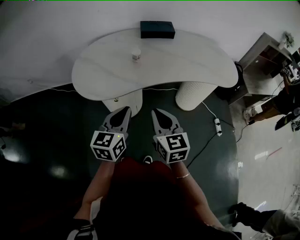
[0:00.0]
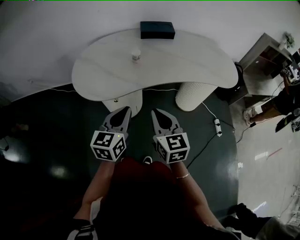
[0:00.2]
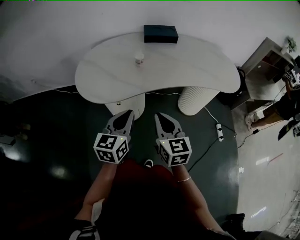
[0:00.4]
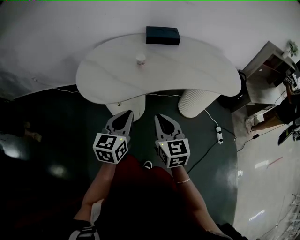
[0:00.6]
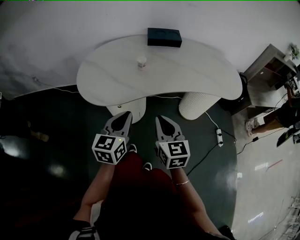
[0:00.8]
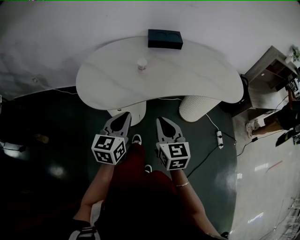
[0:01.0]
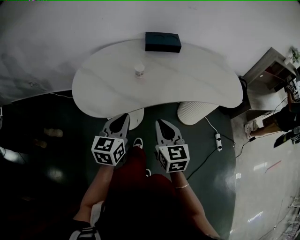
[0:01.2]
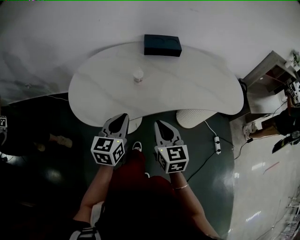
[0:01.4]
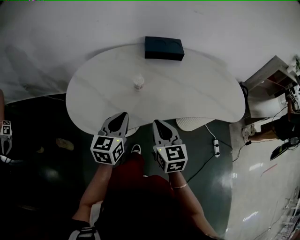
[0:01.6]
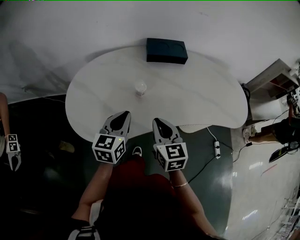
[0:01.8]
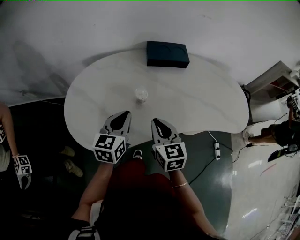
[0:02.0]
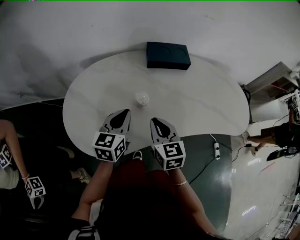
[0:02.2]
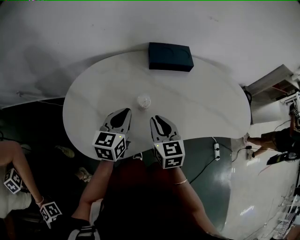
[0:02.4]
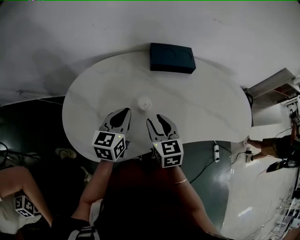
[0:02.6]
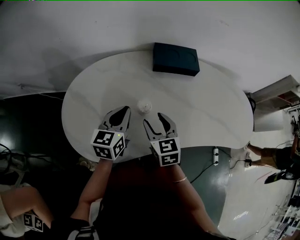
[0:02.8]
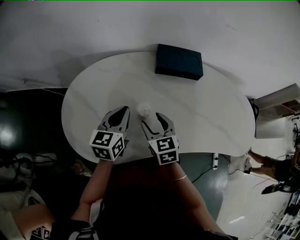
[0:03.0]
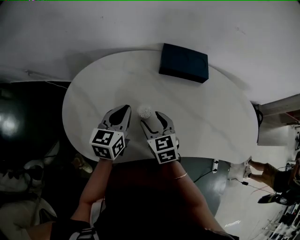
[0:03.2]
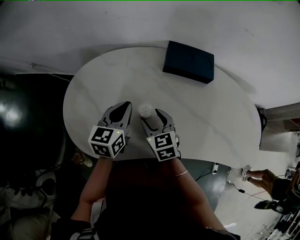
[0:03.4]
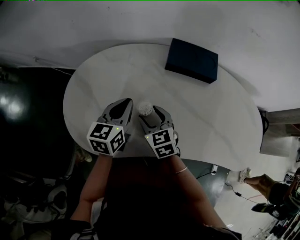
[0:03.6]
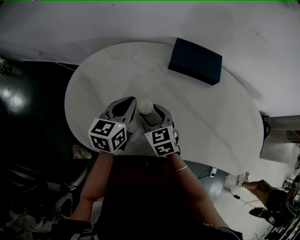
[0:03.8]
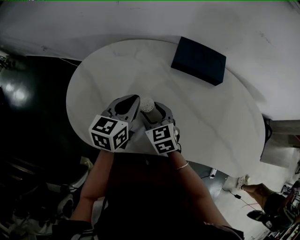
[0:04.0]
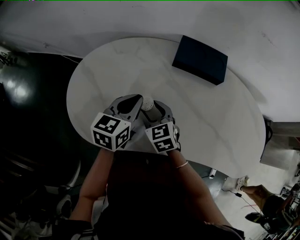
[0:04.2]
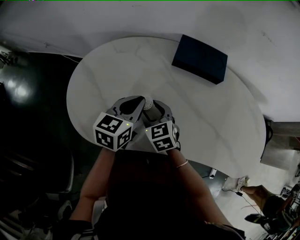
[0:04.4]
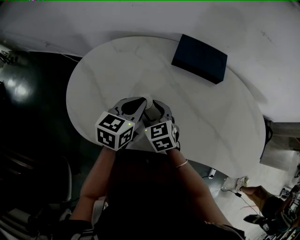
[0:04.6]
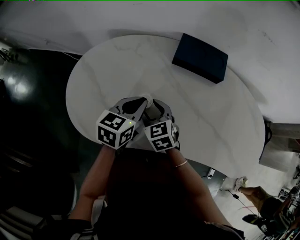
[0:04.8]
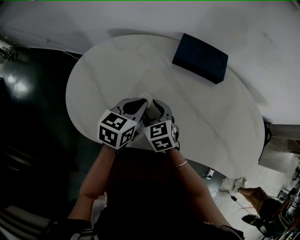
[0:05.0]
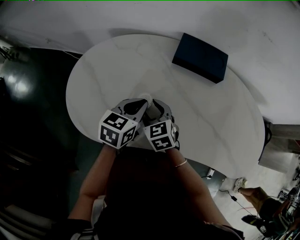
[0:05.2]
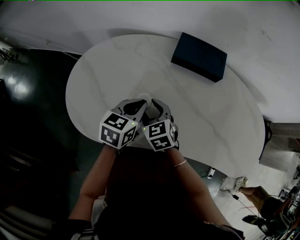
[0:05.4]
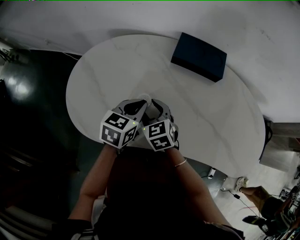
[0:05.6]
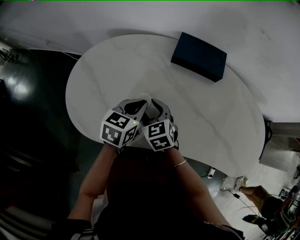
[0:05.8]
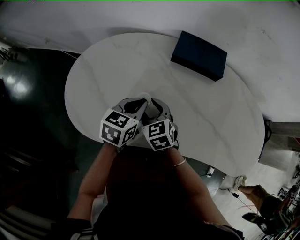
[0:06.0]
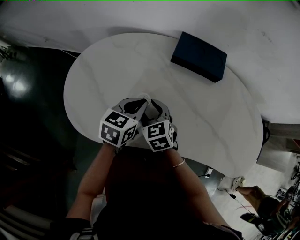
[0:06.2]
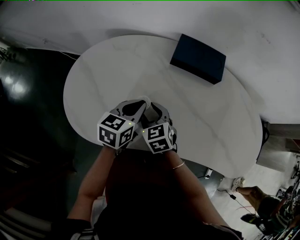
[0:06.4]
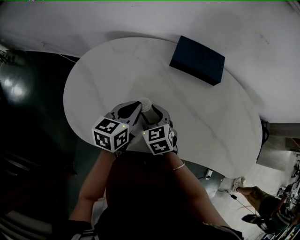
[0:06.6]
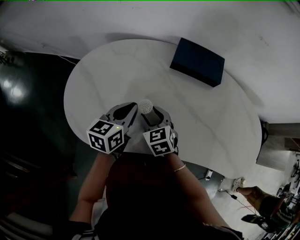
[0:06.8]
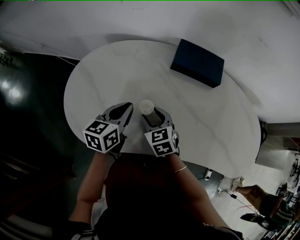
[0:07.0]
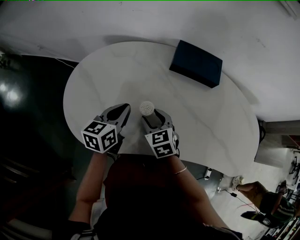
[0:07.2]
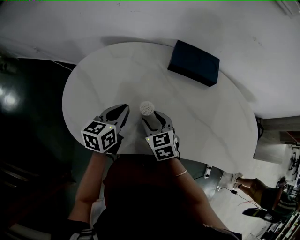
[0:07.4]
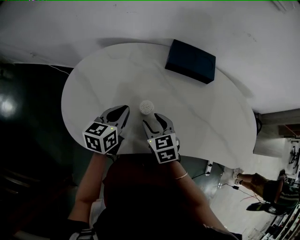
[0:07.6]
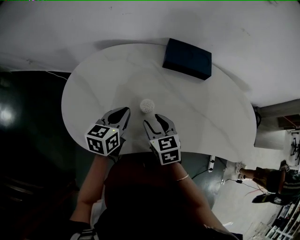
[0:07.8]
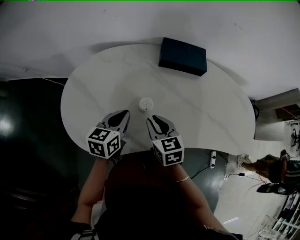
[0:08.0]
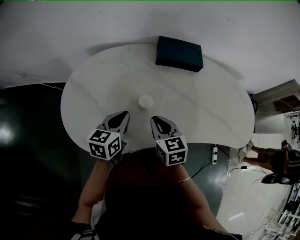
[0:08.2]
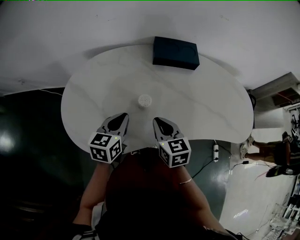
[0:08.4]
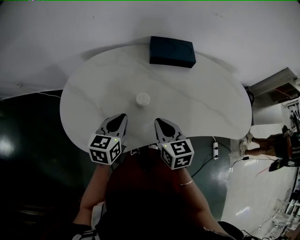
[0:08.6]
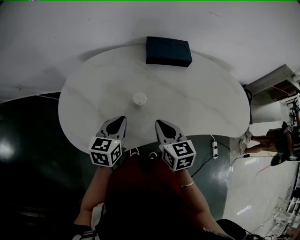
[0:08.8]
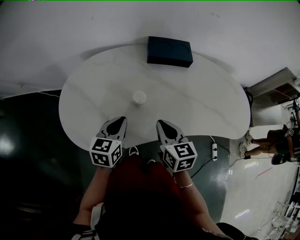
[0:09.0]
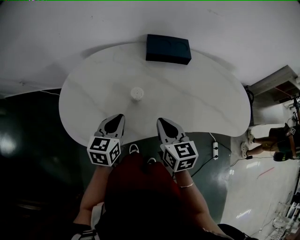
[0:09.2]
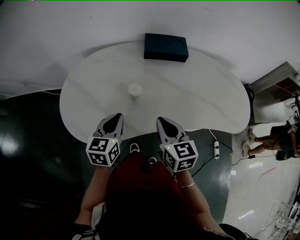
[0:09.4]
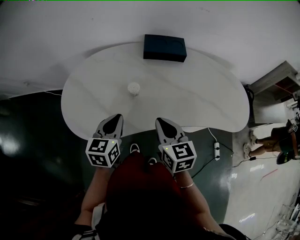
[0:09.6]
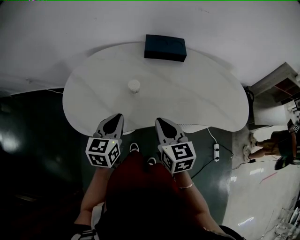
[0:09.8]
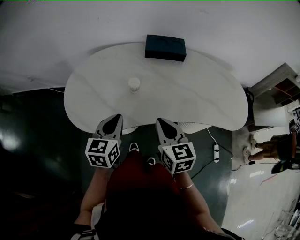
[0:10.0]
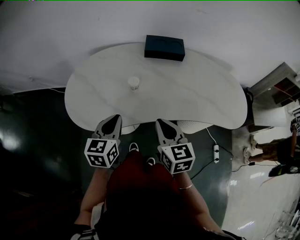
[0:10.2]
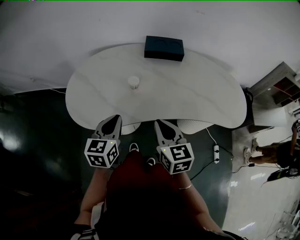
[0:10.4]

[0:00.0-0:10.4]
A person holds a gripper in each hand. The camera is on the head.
0.0 to 1.4 s: Both grippers travel together forward, approximately 10 cm.
1.4 to 3.0 s: The two grippers go roughly 25 cm forward. The right gripper rotates about 20 degrees, and opens its fingers.
3.0 to 4.4 s: The left gripper is displaced to the right by some 5 cm, while the right gripper rotates some 20 degrees.
4.4 to 6.0 s: The grippers move only a little.
6.0 to 7.4 s: The left gripper heads to the left, covering roughly 10 cm.
7.4 to 9.0 s: The left gripper moves backward, roughly 10 cm, while the right gripper heads backward, upward and to the right, covering approximately 15 cm, swivels some 30 degrees, and closes its fingers.
9.0 to 10.4 s: The right gripper is displaced backward by about 10 cm, while the left gripper shifts about 15 cm backward and upward.

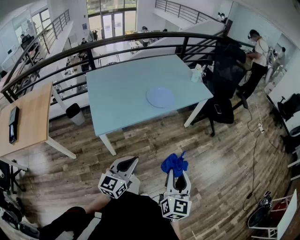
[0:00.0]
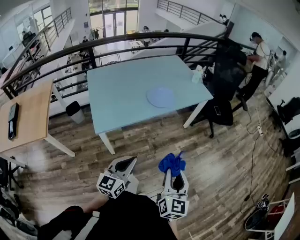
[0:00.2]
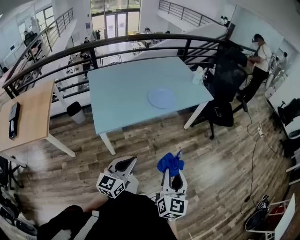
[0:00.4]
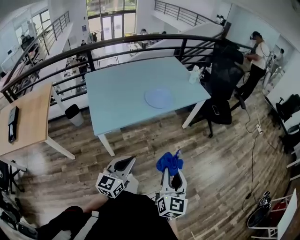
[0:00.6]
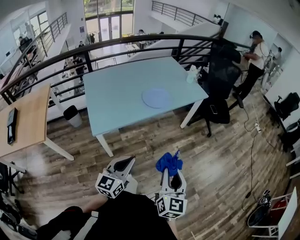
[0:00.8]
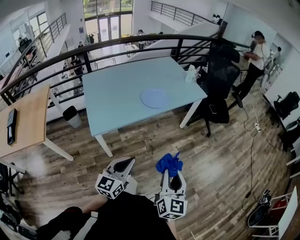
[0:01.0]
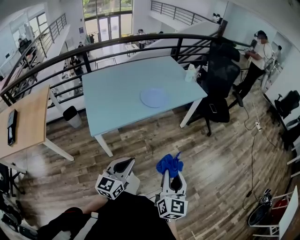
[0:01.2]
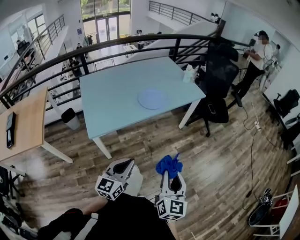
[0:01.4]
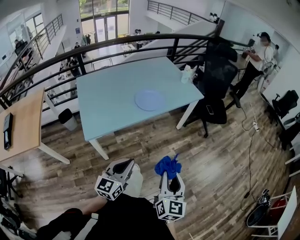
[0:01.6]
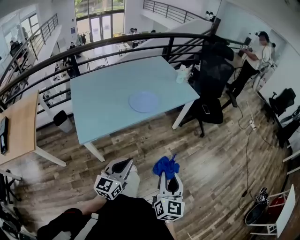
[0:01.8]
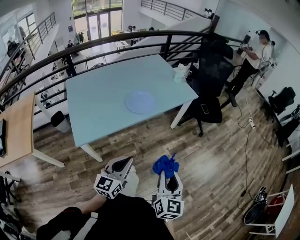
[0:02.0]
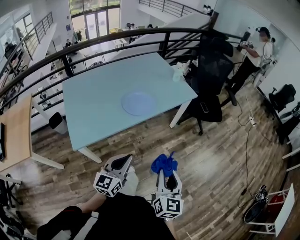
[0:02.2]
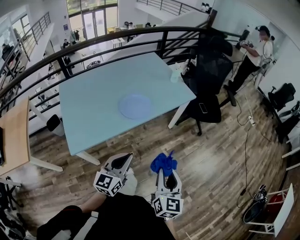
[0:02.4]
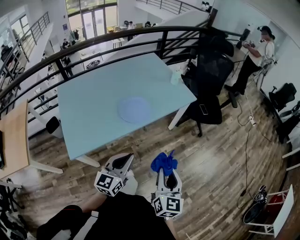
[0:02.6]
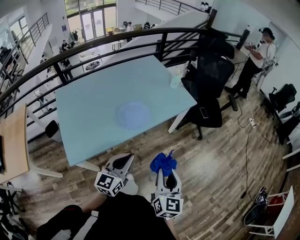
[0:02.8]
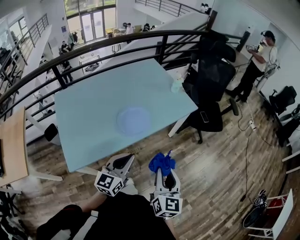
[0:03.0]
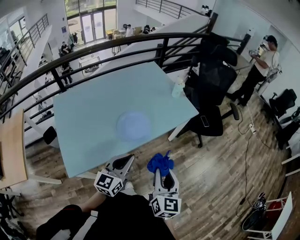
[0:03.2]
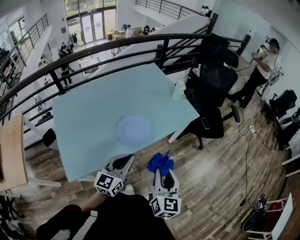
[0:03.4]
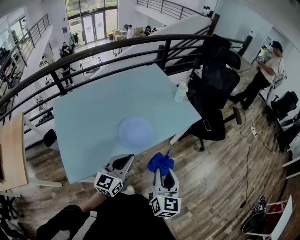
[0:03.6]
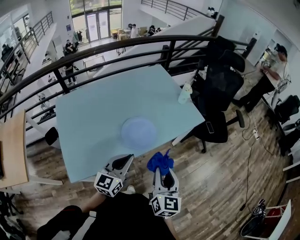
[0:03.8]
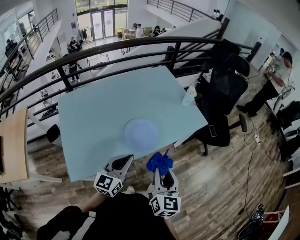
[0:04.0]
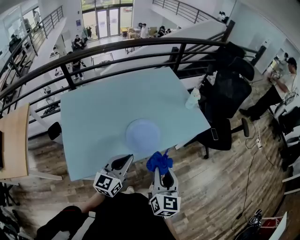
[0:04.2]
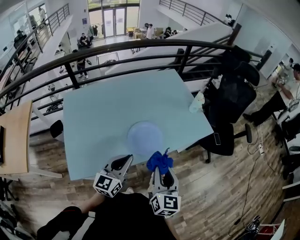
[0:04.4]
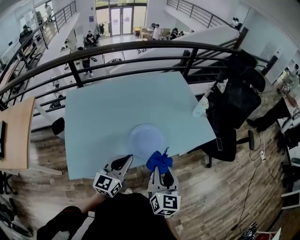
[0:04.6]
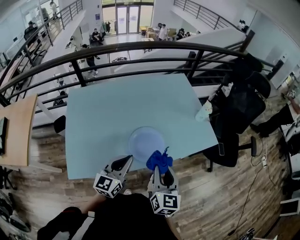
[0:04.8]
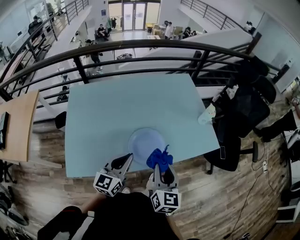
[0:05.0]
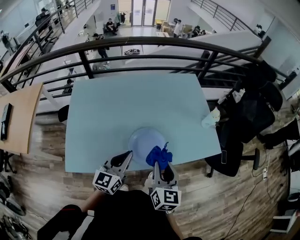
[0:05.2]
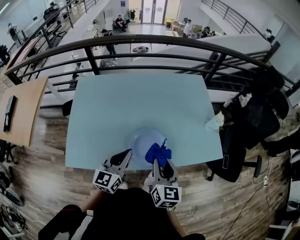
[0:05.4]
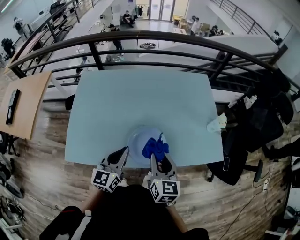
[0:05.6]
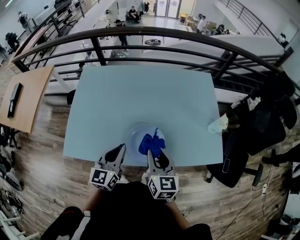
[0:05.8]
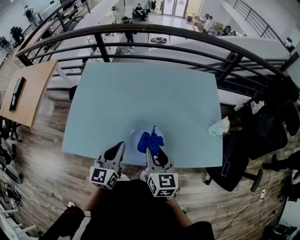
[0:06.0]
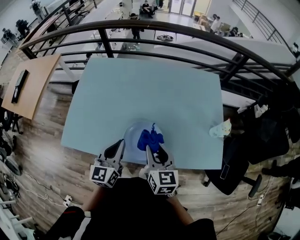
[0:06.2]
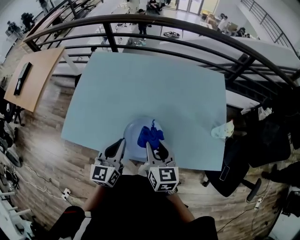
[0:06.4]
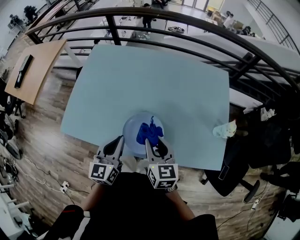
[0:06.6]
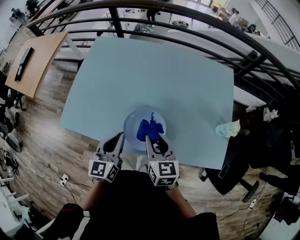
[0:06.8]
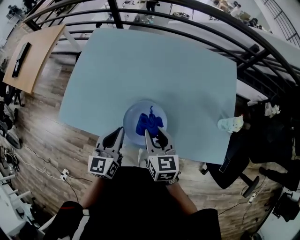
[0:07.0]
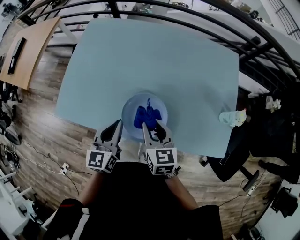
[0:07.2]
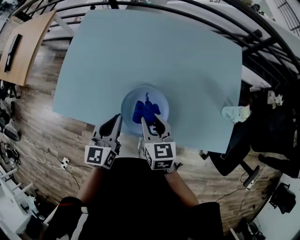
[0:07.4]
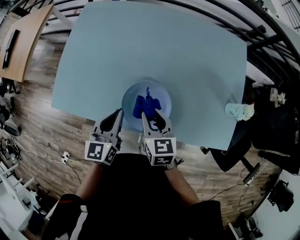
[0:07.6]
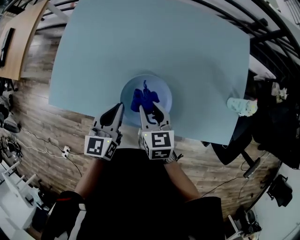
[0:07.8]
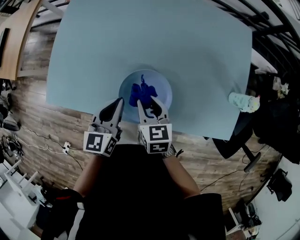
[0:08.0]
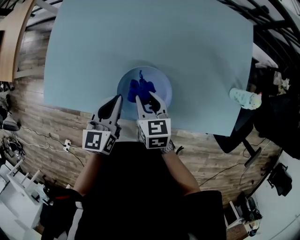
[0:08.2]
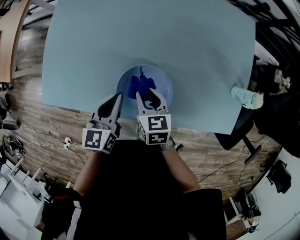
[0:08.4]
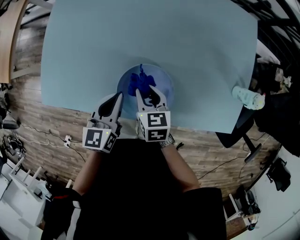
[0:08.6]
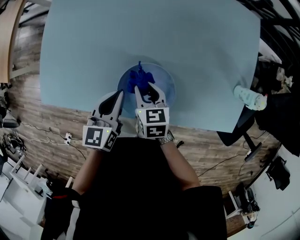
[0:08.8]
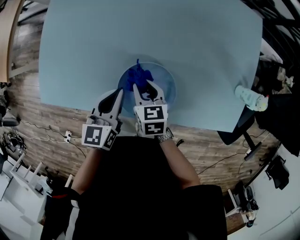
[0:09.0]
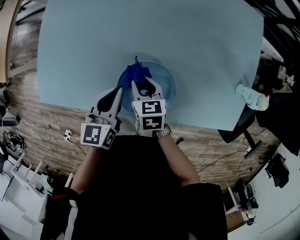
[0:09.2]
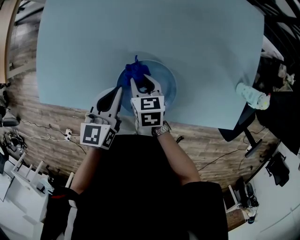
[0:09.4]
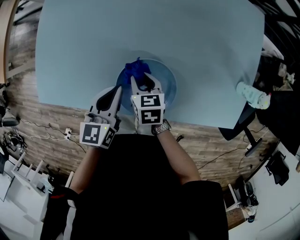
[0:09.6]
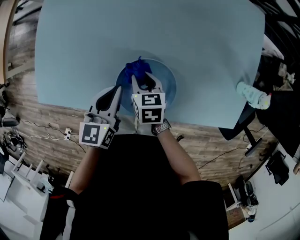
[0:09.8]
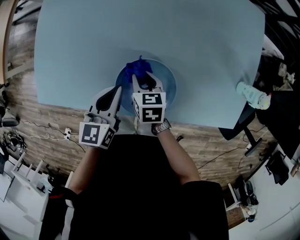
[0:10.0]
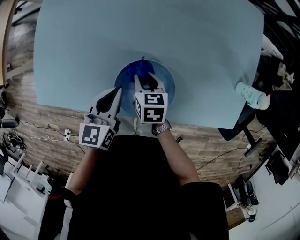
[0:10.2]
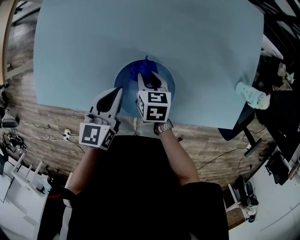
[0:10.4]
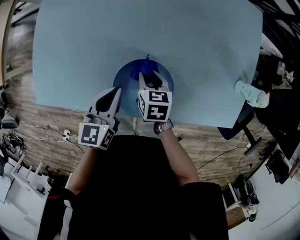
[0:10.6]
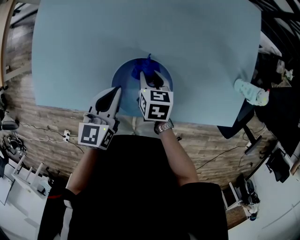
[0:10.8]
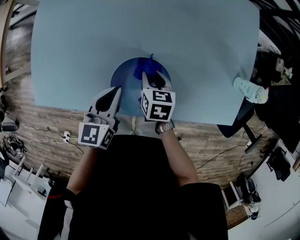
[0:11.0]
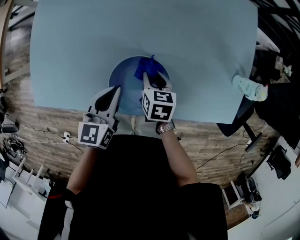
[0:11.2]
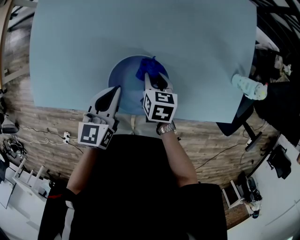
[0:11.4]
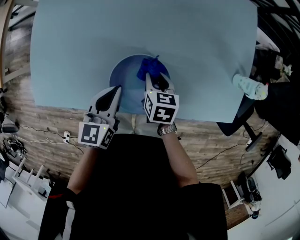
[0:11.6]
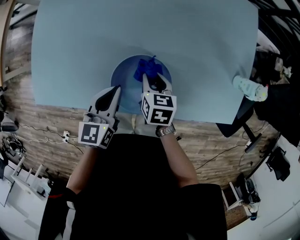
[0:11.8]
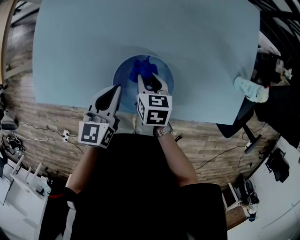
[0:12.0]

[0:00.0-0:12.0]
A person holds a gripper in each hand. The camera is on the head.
0.0 to 1.6 s: The grippers move only a little.
1.6 to 3.0 s: The two grippers go some 25 cm forward.
3.0 to 4.4 s: The grippers both shift forward and to the left by roughly 15 cm.
4.4 to 6.0 s: The left gripper ends up approximately 10 cm from where it was, and changes its angle by roughly 40 degrees; the right gripper changes place by some 20 cm, and swivels approximately 40 degrees.
6.0 to 7.6 s: The right gripper shifts approximately 15 cm downward and forward, and changes its angle by some 20 degrees; the left gripper goes about 10 cm downward.
7.6 to 9.0 s: Both grippers move downward and forward, about 10 cm.
9.0 to 10.4 s: The right gripper shifts by about 5 cm.
10.4 to 12.0 s: There are only small adjustments of the grippers.

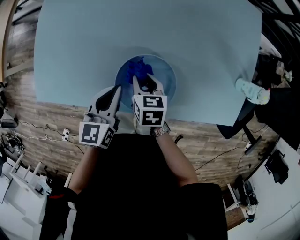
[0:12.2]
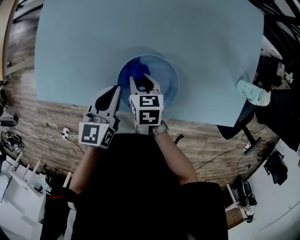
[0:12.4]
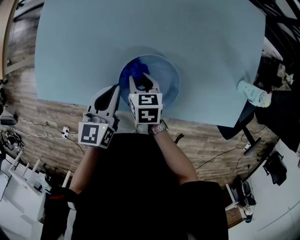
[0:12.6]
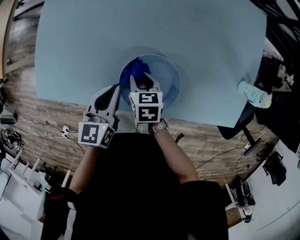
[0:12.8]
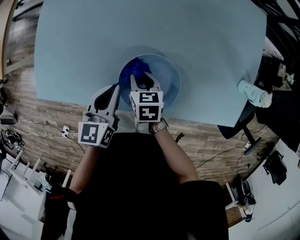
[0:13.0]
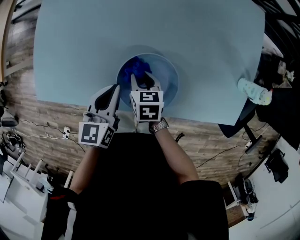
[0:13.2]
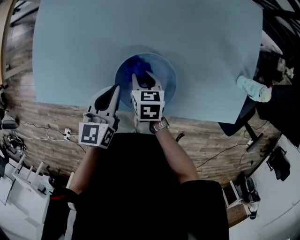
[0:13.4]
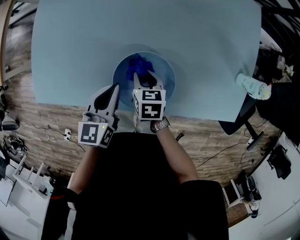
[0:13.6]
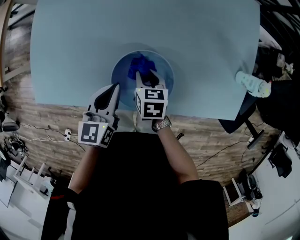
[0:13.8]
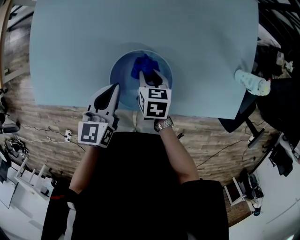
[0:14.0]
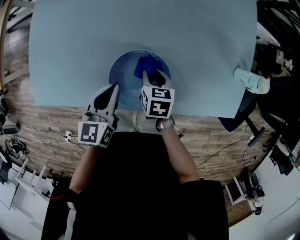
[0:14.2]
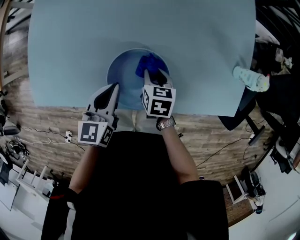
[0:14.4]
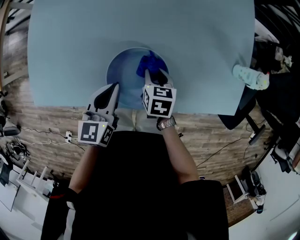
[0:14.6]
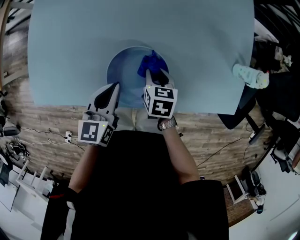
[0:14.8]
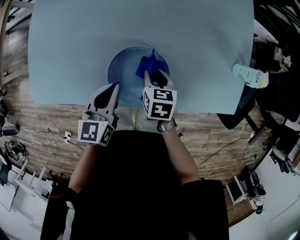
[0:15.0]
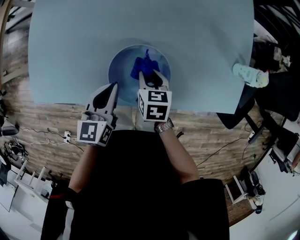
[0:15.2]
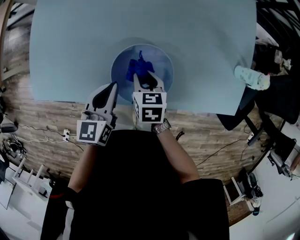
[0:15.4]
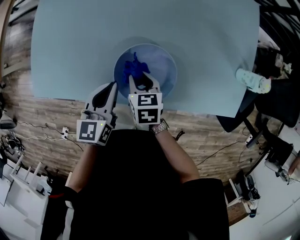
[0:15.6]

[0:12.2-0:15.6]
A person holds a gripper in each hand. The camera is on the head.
12.2 to 13.8 s: The grippers move only a little.
13.8 to 15.6 s: The right gripper ends up roughly 5 cm from where it was.
